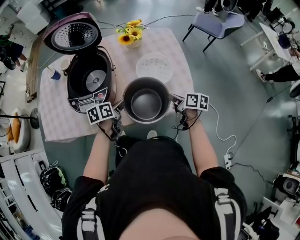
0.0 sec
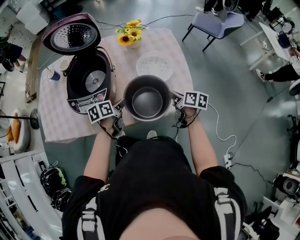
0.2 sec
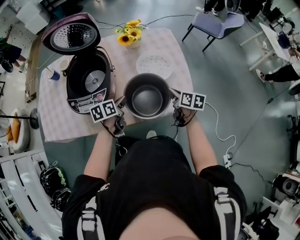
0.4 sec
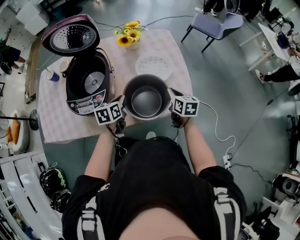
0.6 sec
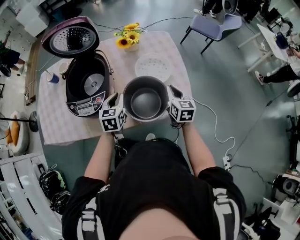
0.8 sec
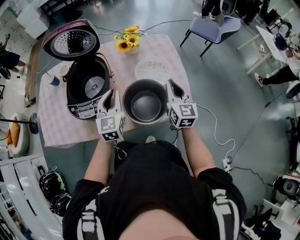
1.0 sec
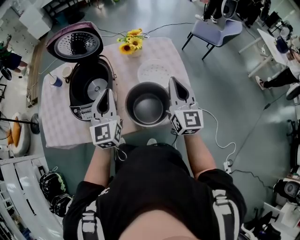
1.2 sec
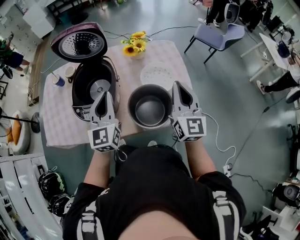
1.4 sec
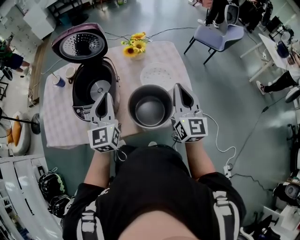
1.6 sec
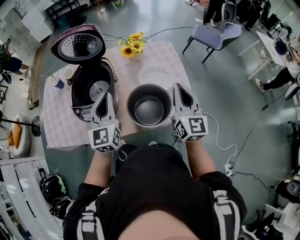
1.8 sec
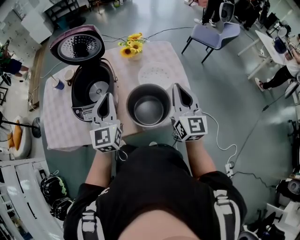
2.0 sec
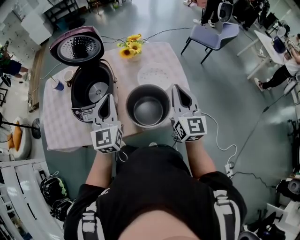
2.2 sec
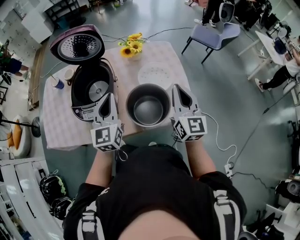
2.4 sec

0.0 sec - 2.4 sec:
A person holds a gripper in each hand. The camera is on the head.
0.0 sec - 1.2 sec: The two grippers go approximately 20 cm upward. The left gripper points its fingers about 40 degrees further upward. The right gripper angles its fingers upward, by some 40 degrees.
1.2 sec - 2.4 sec: The grippers make only small movements.

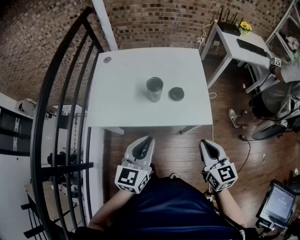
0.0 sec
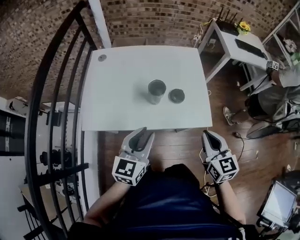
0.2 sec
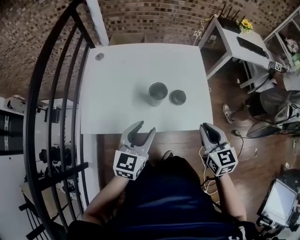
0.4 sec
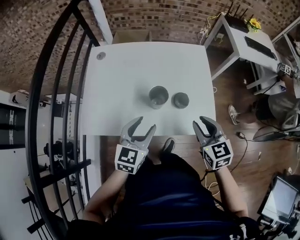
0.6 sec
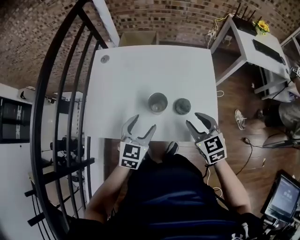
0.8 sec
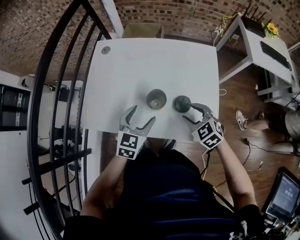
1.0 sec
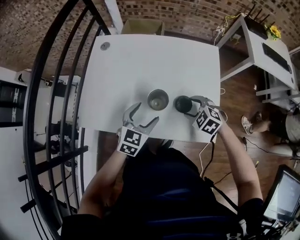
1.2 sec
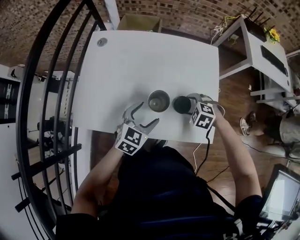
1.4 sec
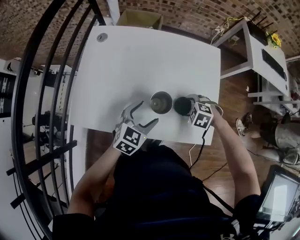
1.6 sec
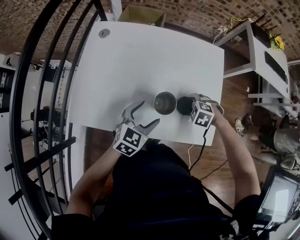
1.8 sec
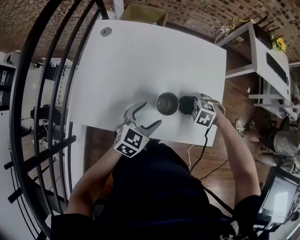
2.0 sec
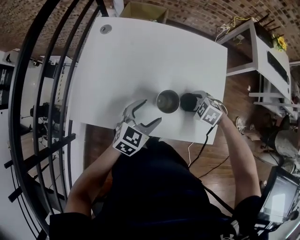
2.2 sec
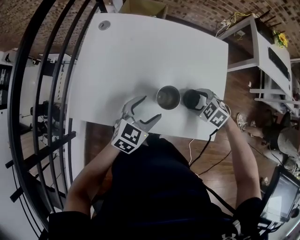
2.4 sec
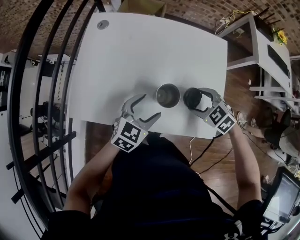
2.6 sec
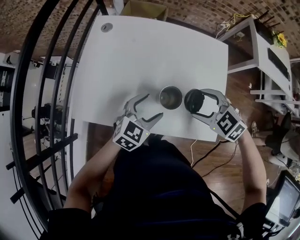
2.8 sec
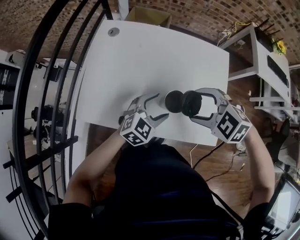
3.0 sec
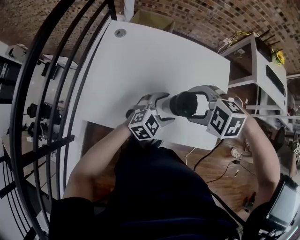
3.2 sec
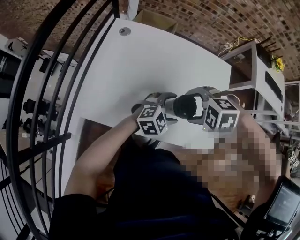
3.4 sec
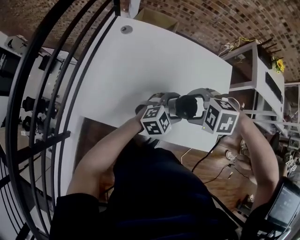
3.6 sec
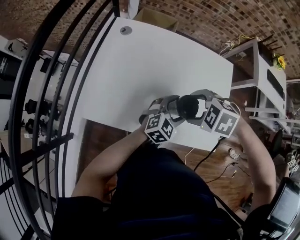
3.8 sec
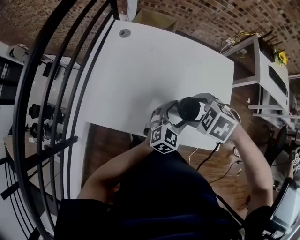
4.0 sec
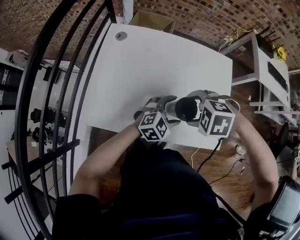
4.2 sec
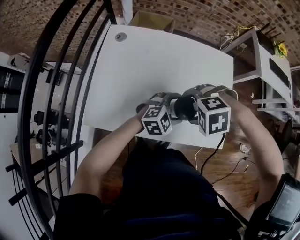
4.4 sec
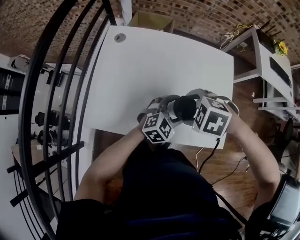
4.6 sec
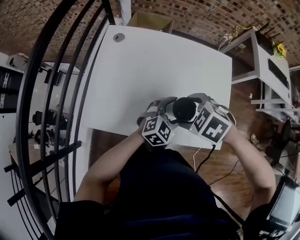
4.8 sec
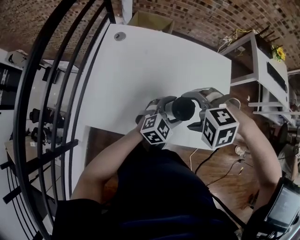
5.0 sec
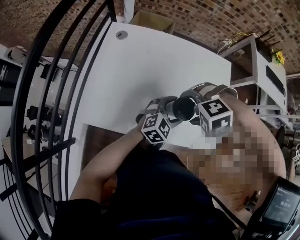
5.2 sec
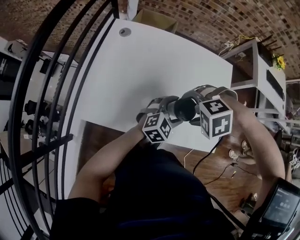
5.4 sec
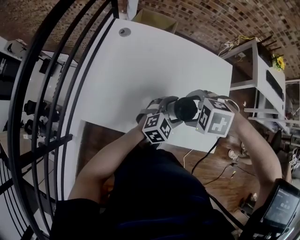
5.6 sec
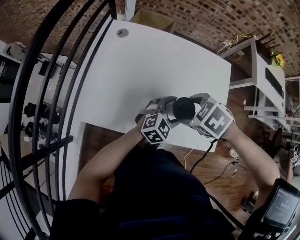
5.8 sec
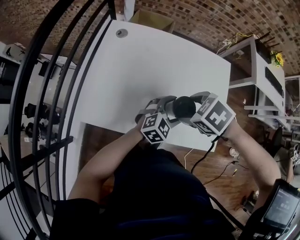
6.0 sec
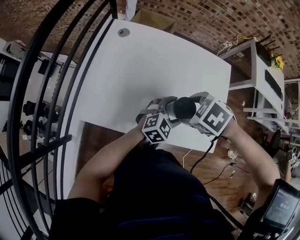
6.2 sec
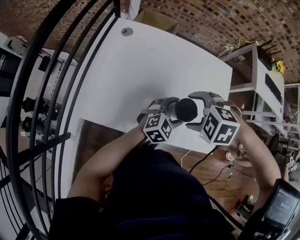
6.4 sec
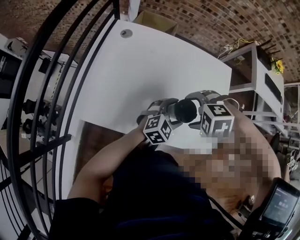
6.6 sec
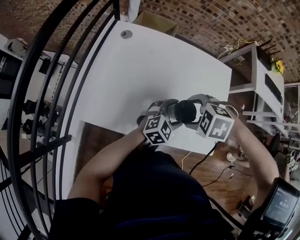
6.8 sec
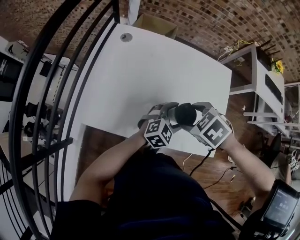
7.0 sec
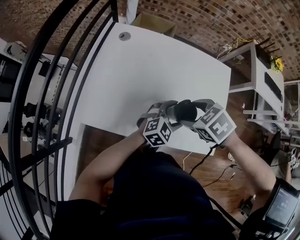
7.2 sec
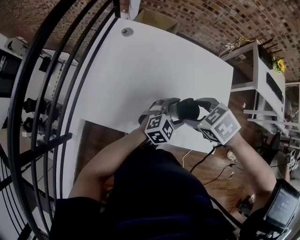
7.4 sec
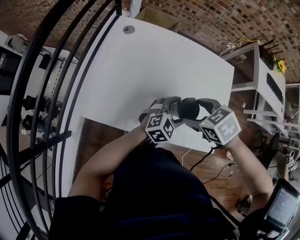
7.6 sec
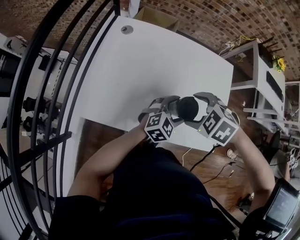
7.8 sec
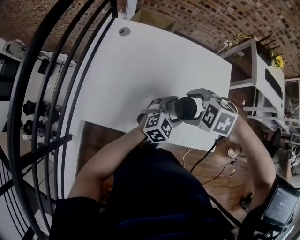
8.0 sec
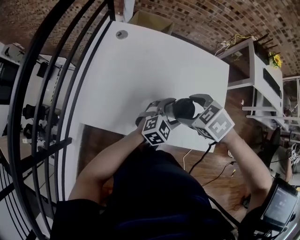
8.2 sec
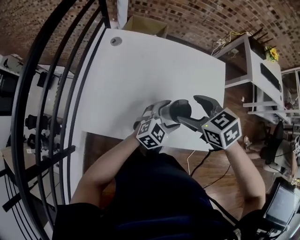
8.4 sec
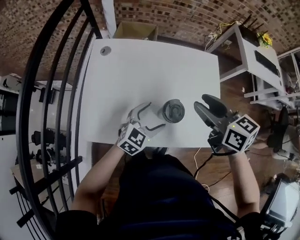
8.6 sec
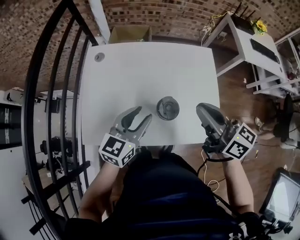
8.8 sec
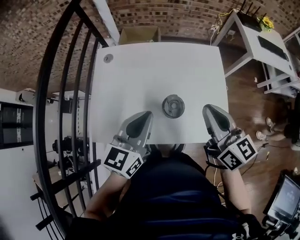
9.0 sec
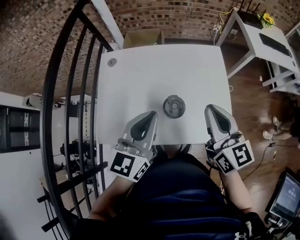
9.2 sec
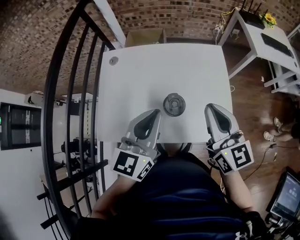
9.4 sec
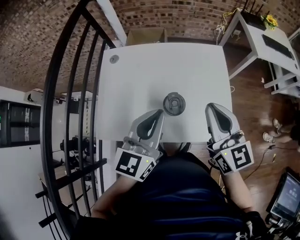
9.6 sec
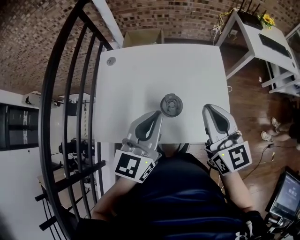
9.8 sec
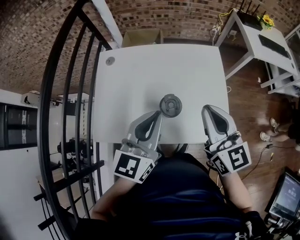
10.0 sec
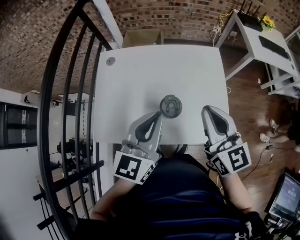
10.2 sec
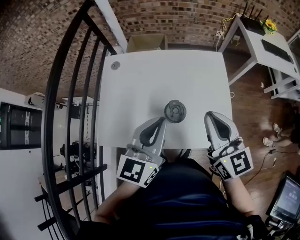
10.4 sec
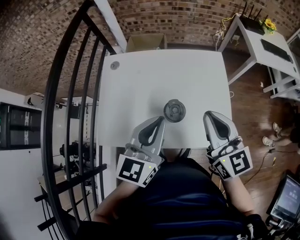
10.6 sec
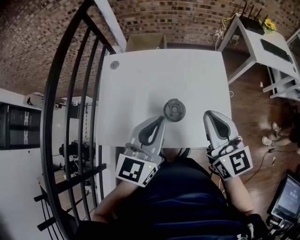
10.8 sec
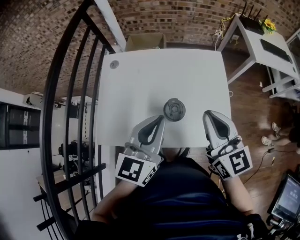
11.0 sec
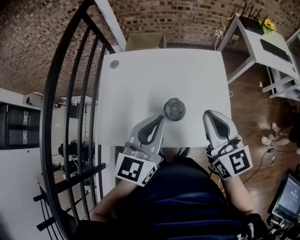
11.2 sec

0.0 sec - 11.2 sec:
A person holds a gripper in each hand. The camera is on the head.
0.0 sec - 1.6 sec: The right gripper ends up roughly 35 cm from where it was, tips its fingers downward by some 60 degrees, and opens up, while the left gripper changes place by some 25 cm, swivels approximately 30 degrees, and opens its fingers.
1.6 sec - 3.2 sec: The right gripper heads upward, covering approximately 20 cm, and changes its angle by about 20 degrees, while the left gripper rotates roughly 20 degrees.
3.2 sec - 4.8 sec: The right gripper swivels about 30 degrees.
4.8 sec - 6.4 sec: The right gripper rotates about 20 degrees.
8.0 sec - 9.6 sec: The grippers both shift upward by approximately 20 cm. The right gripper tilts its fingers some 70 degrees upward, and closes its fingers, while the left gripper swivels about 40 degrees, and closes up.
9.6 sec - 11.2 sec: Both grippers stay about where they are.

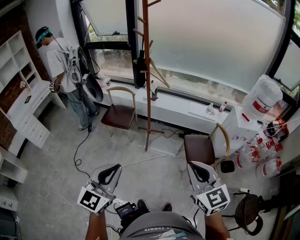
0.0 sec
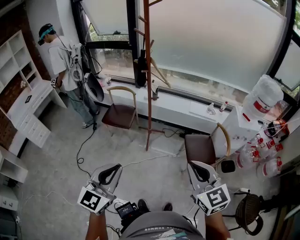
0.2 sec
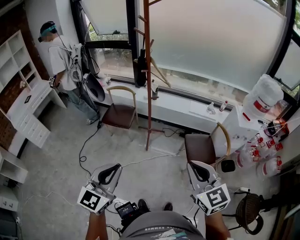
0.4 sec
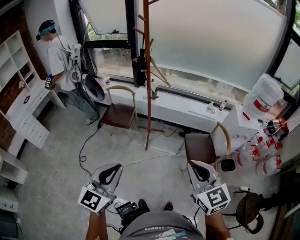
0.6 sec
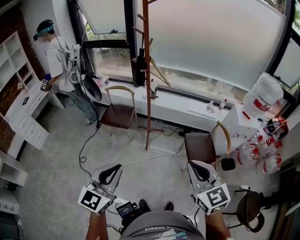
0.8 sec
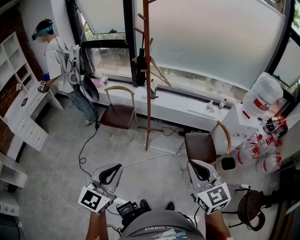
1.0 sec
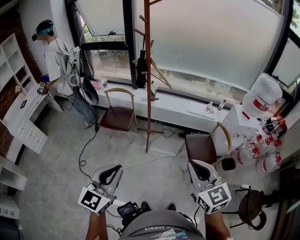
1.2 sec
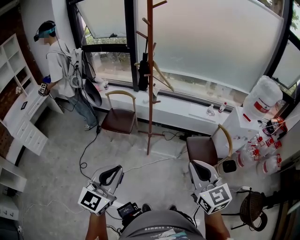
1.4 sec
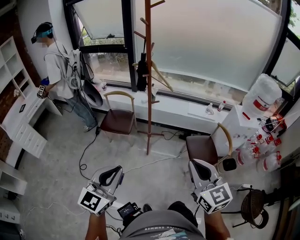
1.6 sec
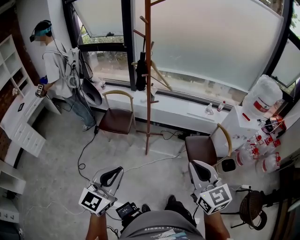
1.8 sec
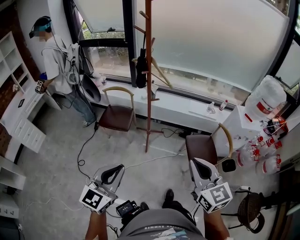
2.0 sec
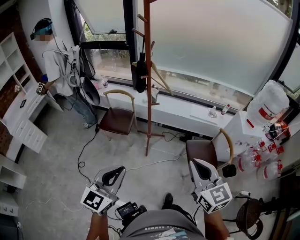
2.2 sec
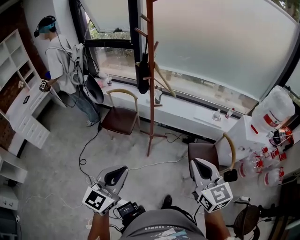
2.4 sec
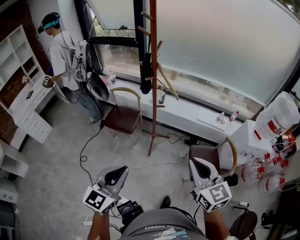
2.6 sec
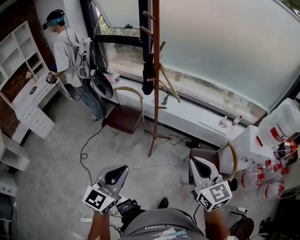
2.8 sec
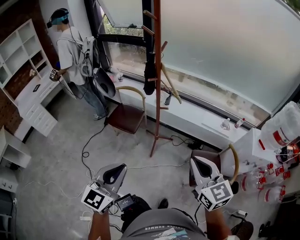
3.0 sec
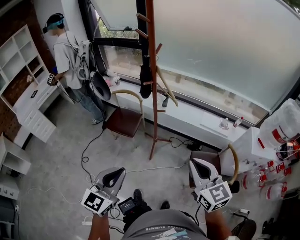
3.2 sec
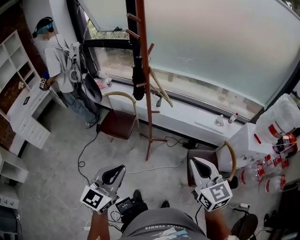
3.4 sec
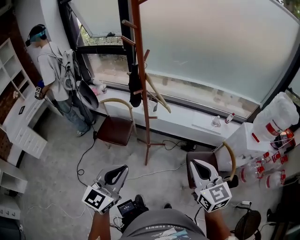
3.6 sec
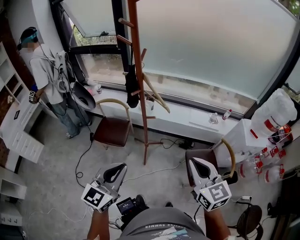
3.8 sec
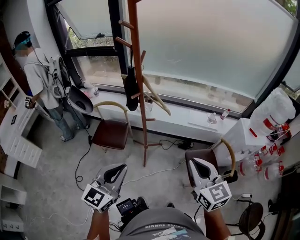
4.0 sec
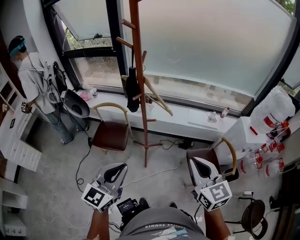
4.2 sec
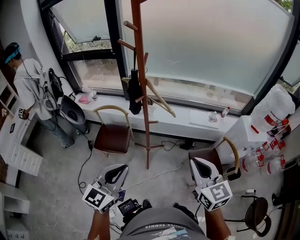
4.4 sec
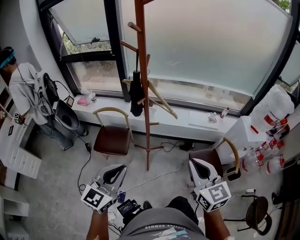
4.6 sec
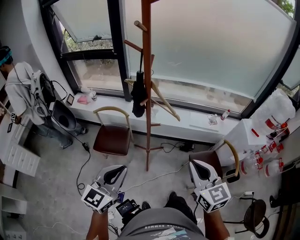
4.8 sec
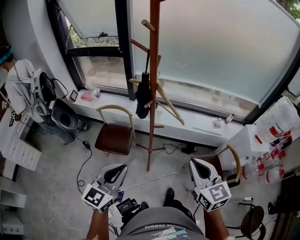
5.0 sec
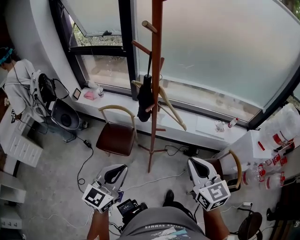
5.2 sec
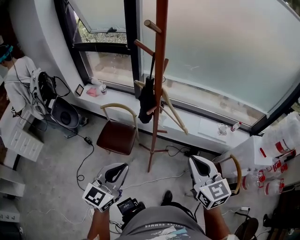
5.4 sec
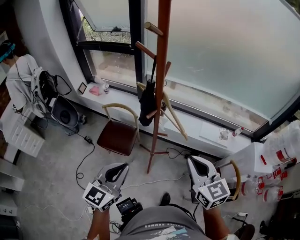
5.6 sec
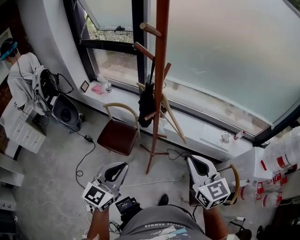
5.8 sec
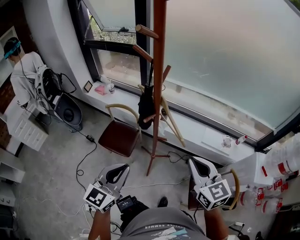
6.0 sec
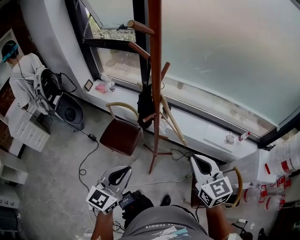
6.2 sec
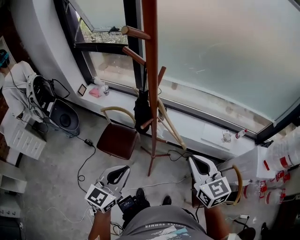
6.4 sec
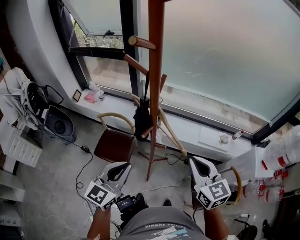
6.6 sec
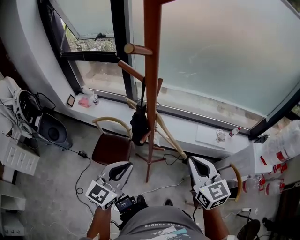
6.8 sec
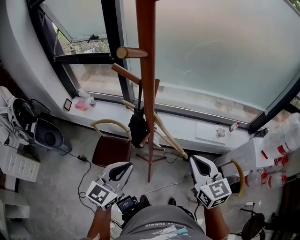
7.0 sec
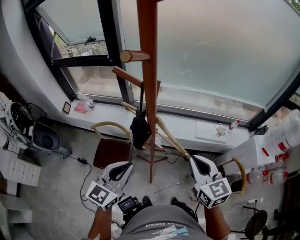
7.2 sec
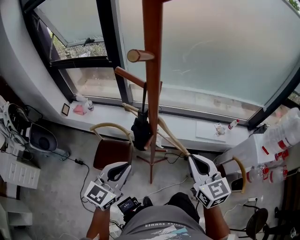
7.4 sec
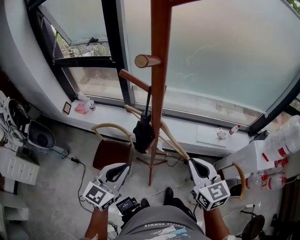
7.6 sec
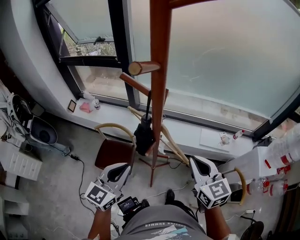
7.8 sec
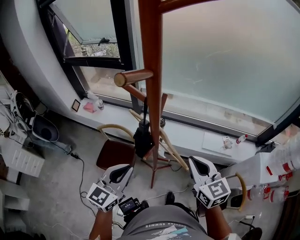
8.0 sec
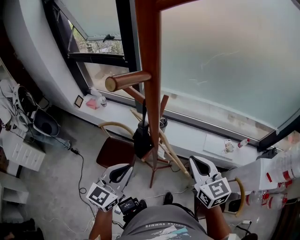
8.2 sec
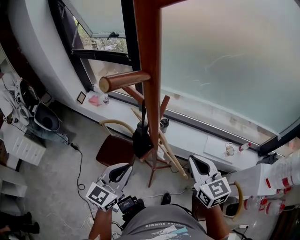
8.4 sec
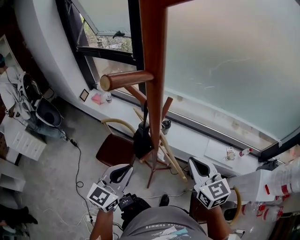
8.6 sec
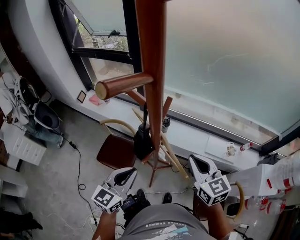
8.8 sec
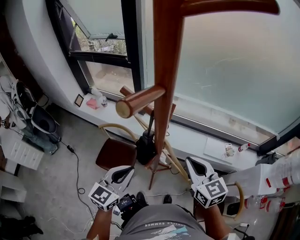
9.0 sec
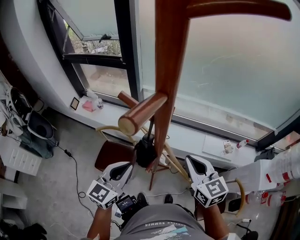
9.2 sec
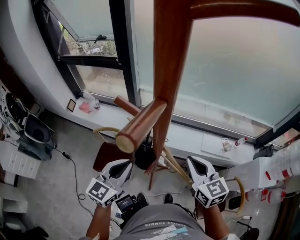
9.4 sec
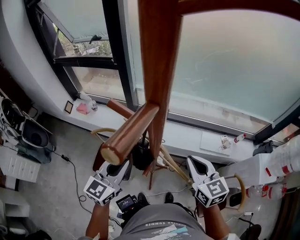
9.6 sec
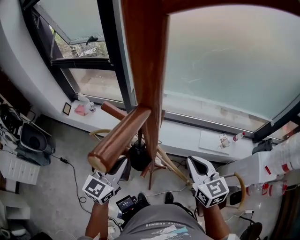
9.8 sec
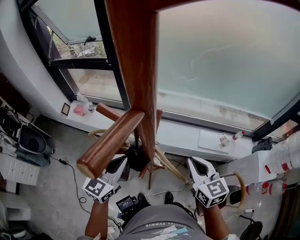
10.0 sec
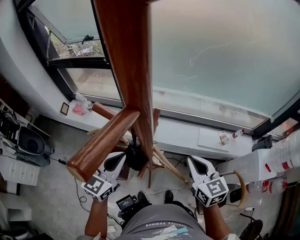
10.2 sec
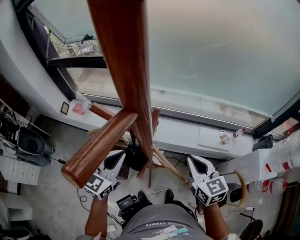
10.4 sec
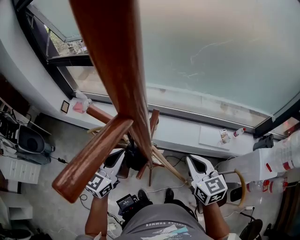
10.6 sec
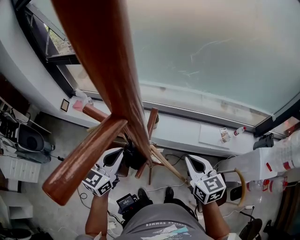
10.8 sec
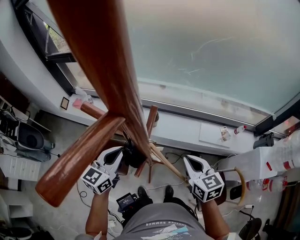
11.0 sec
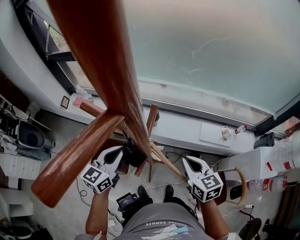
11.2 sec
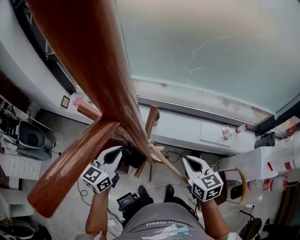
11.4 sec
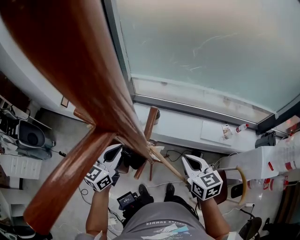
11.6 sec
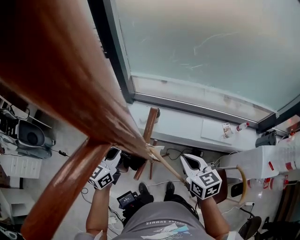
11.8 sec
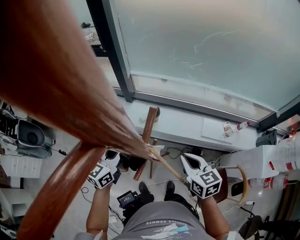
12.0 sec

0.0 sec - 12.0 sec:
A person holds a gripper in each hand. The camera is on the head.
0.0 sec - 1.6 sec: Both grippers move to the left, some 5 cm.
1.6 sec - 3.0 sec: Both grippers travel together forward and to the right, roughly 20 cm.
3.0 sec - 4.4 sec: The right gripper heads forward and to the left, covering approximately 10 cm, while the left gripper heads forward and to the left, covering roughly 20 cm.
4.4 sec - 6.0 sec: Both grippers move forward, approximately 15 cm.
6.0 sec - 7.6 sec: The right gripper is displaced forward by approximately 10 cm, while the left gripper heads forward and to the left, covering approximately 15 cm.
7.6 sec - 9.0 sec: The left gripper is displaced forward by about 5 cm, while the right gripper travels forward by approximately 10 cm.
9.0 sec - 10.4 sec: The left gripper travels forward by approximately 10 cm. The right gripper changes place by roughly 5 cm.
10.4 sec - 12.0 sec: The grippers both shift downward by about 5 cm.
